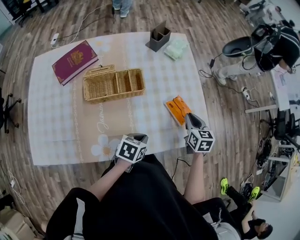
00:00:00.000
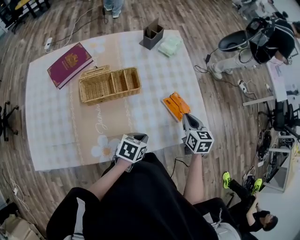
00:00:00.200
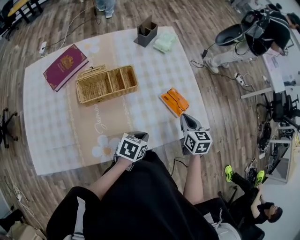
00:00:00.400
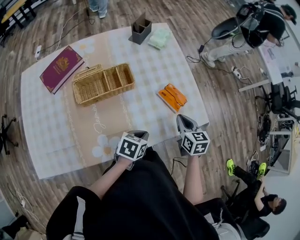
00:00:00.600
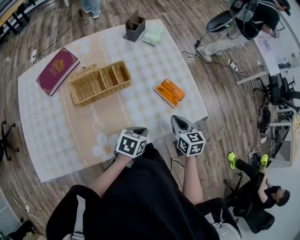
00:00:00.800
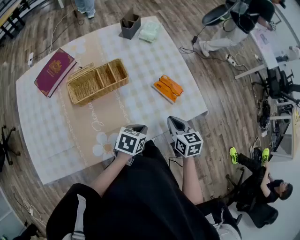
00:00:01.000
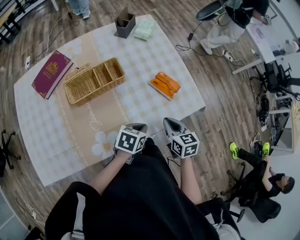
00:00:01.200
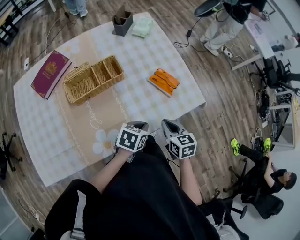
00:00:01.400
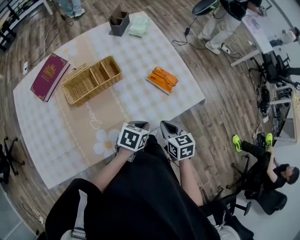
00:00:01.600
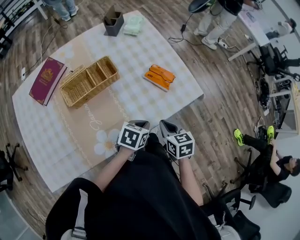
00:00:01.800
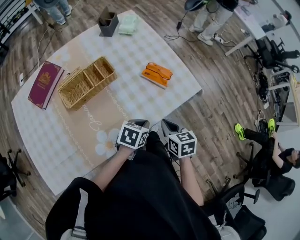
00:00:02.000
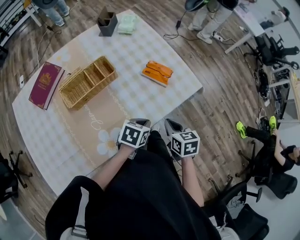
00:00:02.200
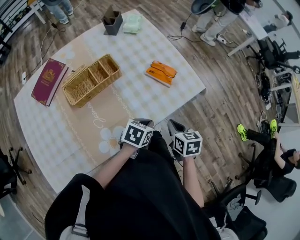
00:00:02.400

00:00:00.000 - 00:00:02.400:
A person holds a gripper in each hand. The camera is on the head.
00:00:00.000 - 00:00:01.200: The right gripper travels backward by about 15 cm.
00:00:01.200 - 00:00:02.400: The right gripper shifts approximately 5 cm backward.

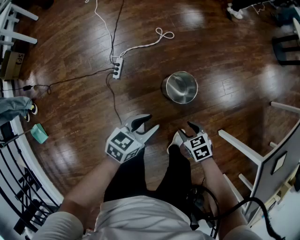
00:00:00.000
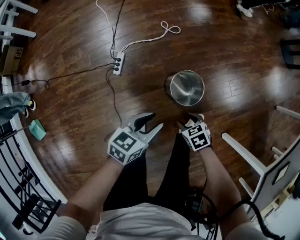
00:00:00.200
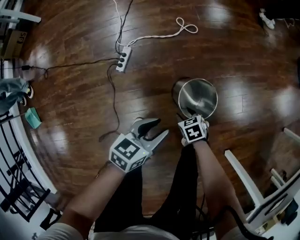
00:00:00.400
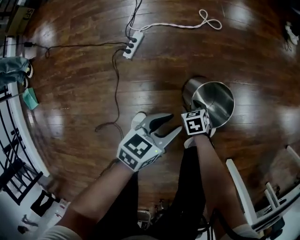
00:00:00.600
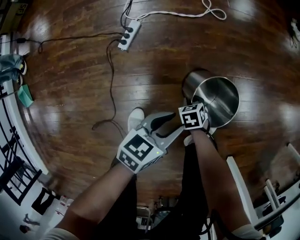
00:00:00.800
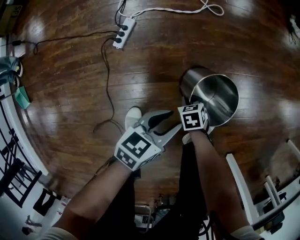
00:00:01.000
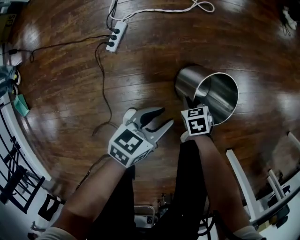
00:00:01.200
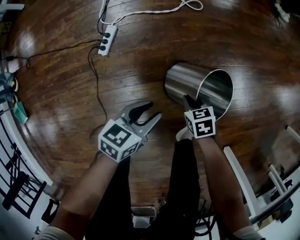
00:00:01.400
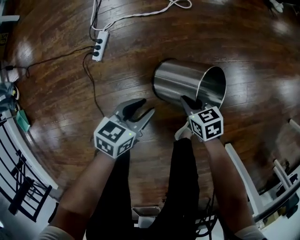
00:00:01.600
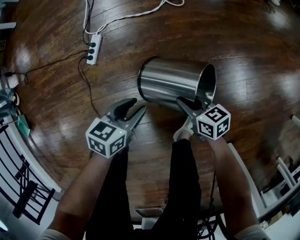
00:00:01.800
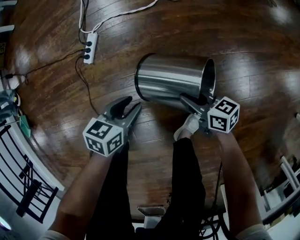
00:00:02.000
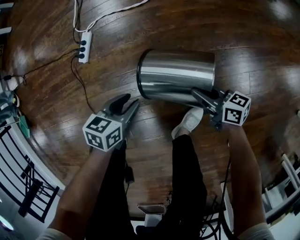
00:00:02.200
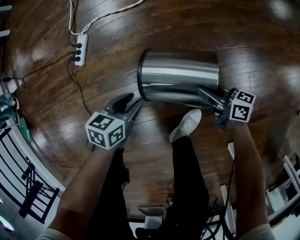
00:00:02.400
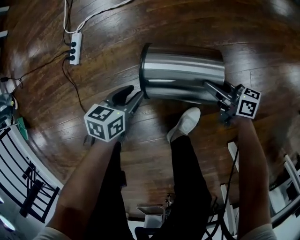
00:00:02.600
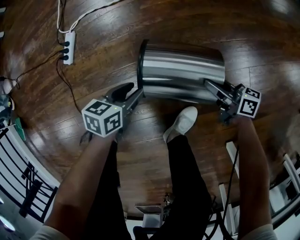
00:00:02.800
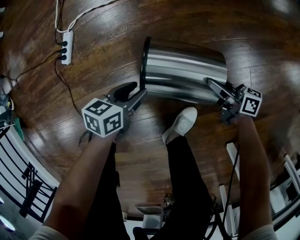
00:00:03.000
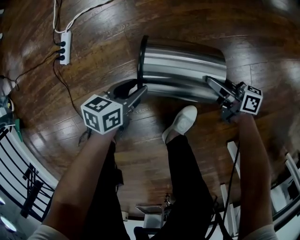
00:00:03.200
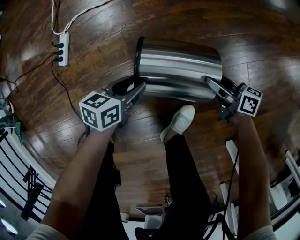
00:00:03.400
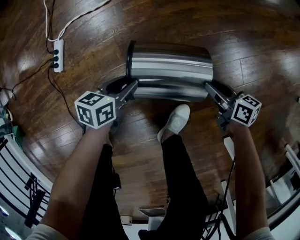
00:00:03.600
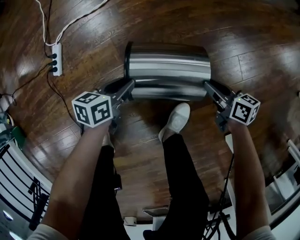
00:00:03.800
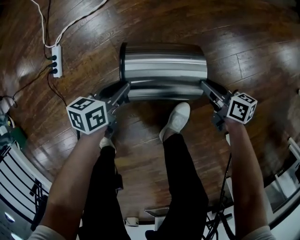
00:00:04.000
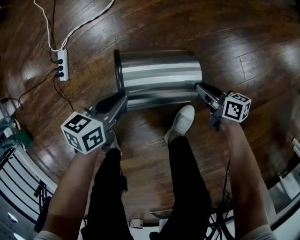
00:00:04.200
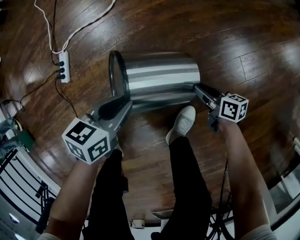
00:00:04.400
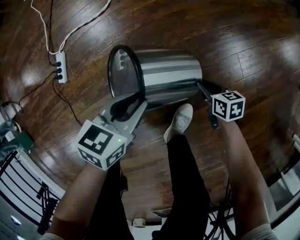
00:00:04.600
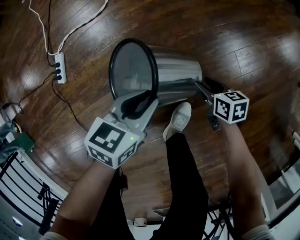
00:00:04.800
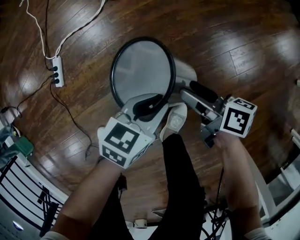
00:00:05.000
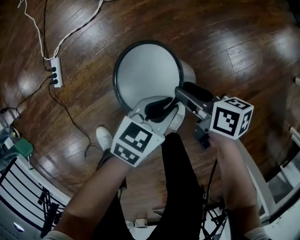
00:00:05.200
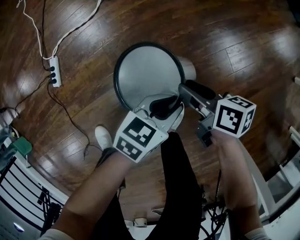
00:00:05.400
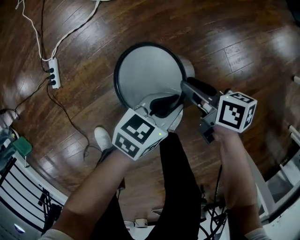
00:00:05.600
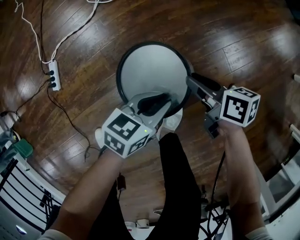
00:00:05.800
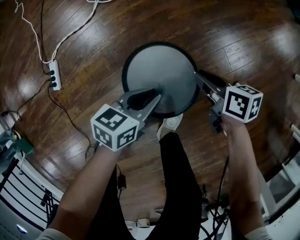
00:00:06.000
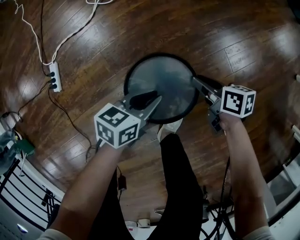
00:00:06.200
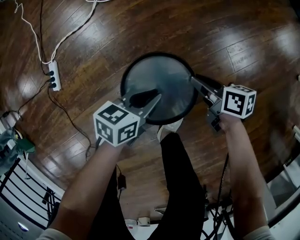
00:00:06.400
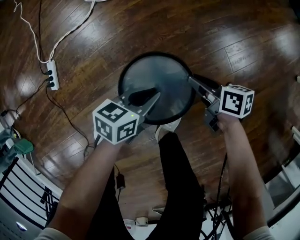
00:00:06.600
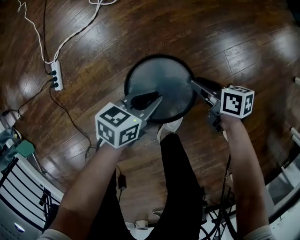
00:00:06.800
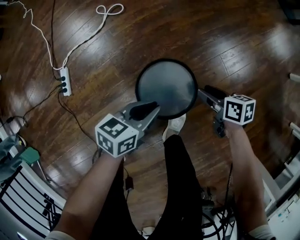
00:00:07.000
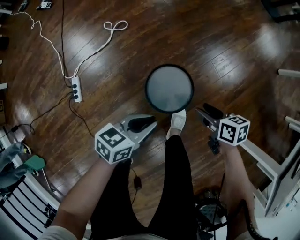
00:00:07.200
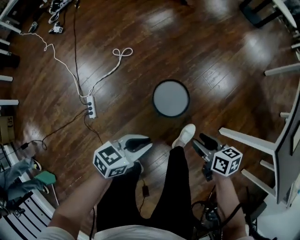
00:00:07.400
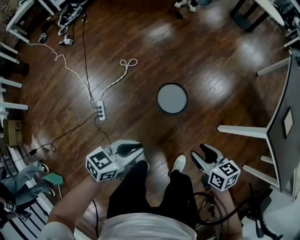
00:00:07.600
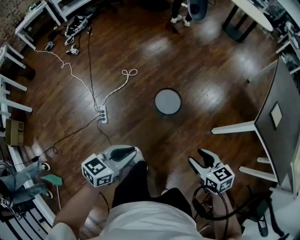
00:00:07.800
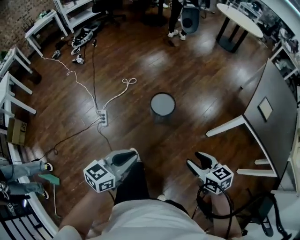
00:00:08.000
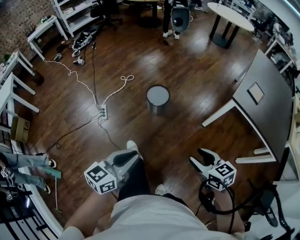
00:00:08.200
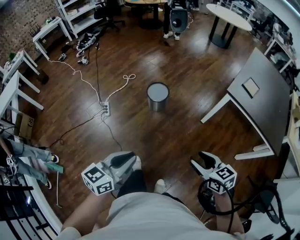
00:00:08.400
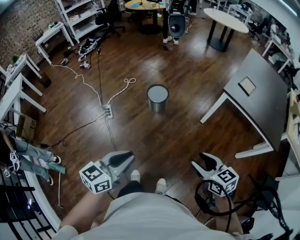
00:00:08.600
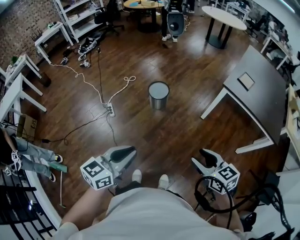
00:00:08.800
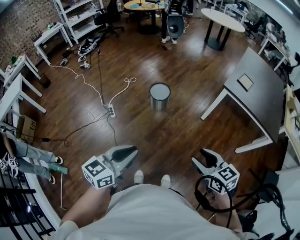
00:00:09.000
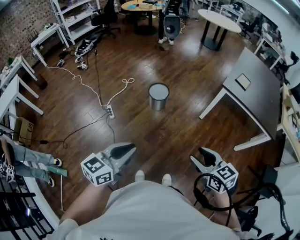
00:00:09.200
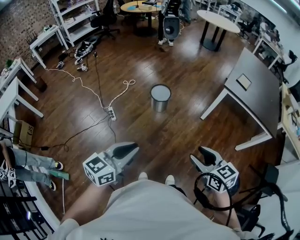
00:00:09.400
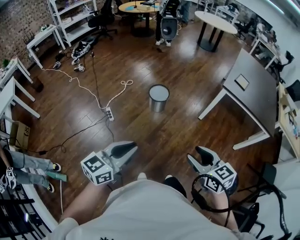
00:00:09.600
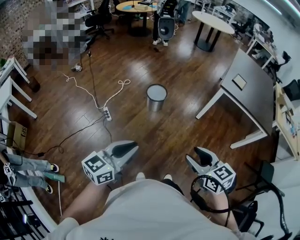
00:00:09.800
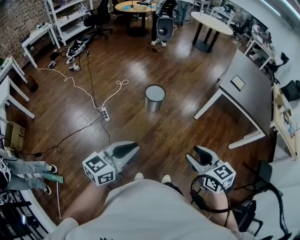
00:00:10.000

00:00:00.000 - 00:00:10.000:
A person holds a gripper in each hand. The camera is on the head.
00:00:00.000 - 00:00:01.400: Both grippers move downward, about 25 cm. The right gripper closes.
00:00:01.400 - 00:00:02.800: The left gripper moves downward and to the right, about 15 cm; the right gripper travels to the right by roughly 20 cm, and tilts its fingers some 50 degrees upward.
00:00:02.800 - 00:00:04.200: The left gripper moves upward, about 5 cm, and closes, while the right gripper moves approximately 5 cm, swivels some 20 degrees, and opens and closes again.
00:00:04.200 - 00:00:05.800: The right gripper moves upward, about 10 cm, and opens, then closes again, while the left gripper shifts by roughly 20 cm, and swivels approximately 20 degrees.
00:00:05.800 - 00:00:07.200: The left gripper is displaced upward by roughly 10 cm. The right gripper shifts by approximately 15 cm, and opens up.
00:00:07.200 - 00:00:08.600: The two grippers travel together, backward, some 60 cm. The two grippers go about 40 cm upward. The right gripper changes its angle by some 30 degrees, while the left gripper swivels some 30 degrees.
00:00:08.600 - 00:00:10.000: The right gripper is displaced to the left and upward by some 15 cm. The left gripper travels to the left by some 10 cm.

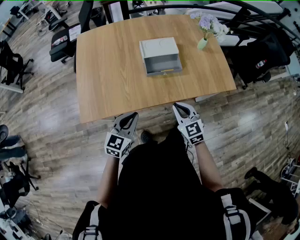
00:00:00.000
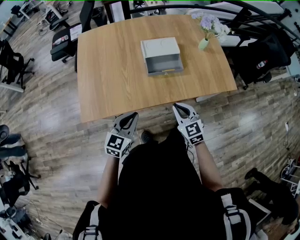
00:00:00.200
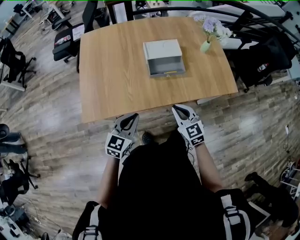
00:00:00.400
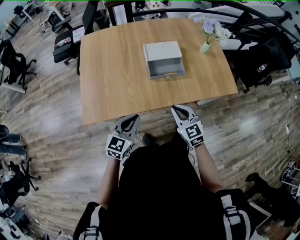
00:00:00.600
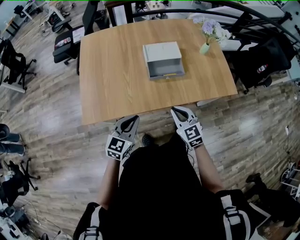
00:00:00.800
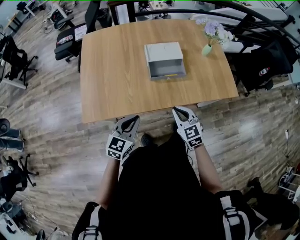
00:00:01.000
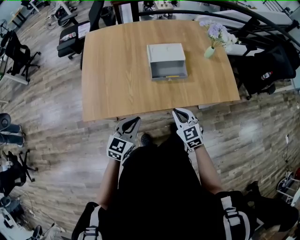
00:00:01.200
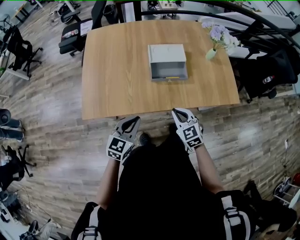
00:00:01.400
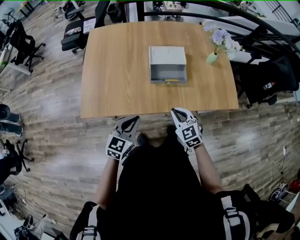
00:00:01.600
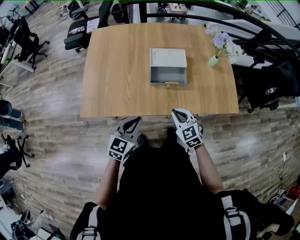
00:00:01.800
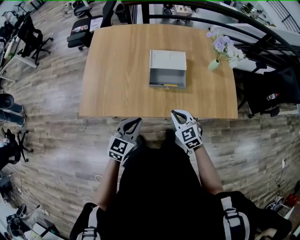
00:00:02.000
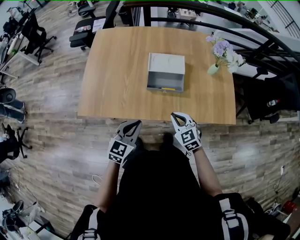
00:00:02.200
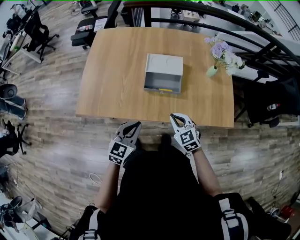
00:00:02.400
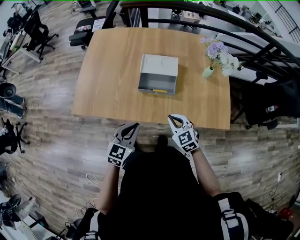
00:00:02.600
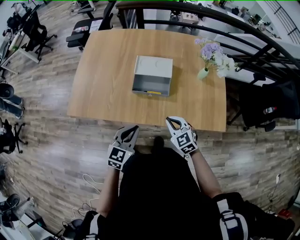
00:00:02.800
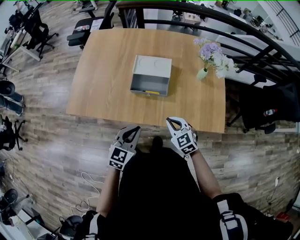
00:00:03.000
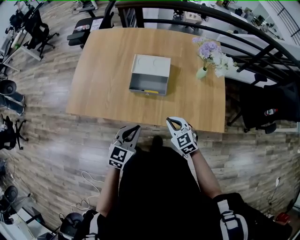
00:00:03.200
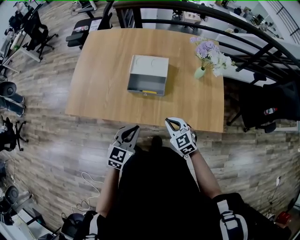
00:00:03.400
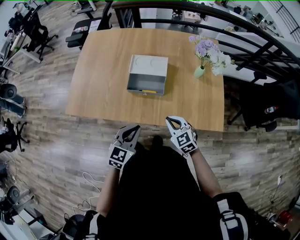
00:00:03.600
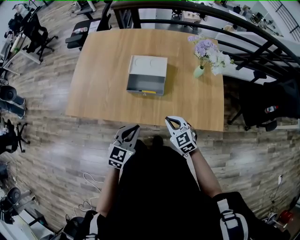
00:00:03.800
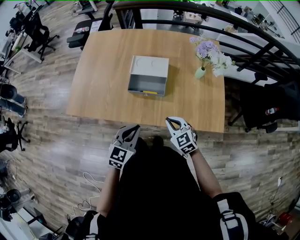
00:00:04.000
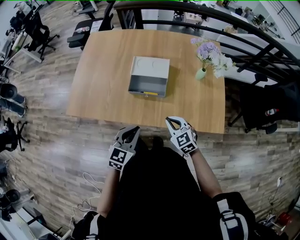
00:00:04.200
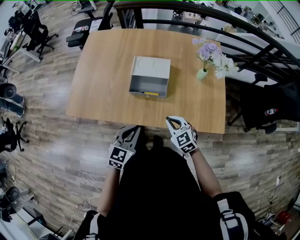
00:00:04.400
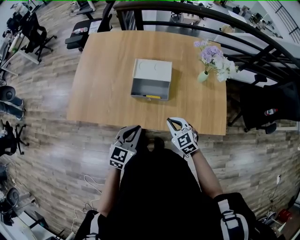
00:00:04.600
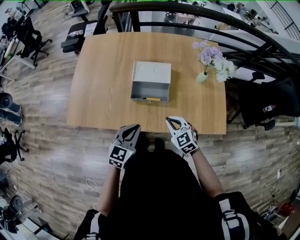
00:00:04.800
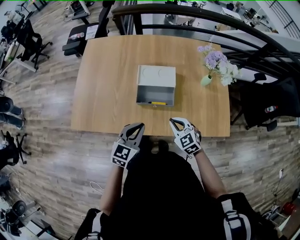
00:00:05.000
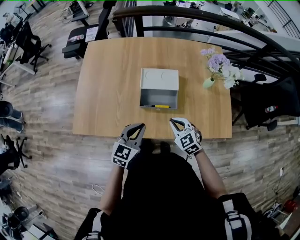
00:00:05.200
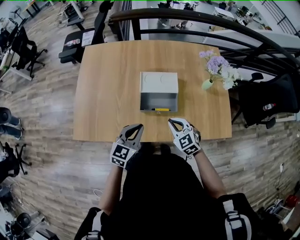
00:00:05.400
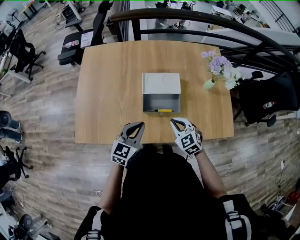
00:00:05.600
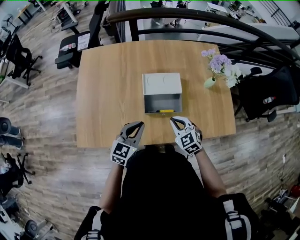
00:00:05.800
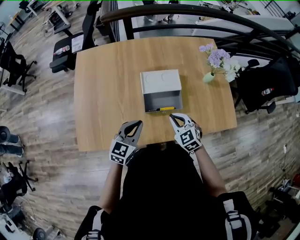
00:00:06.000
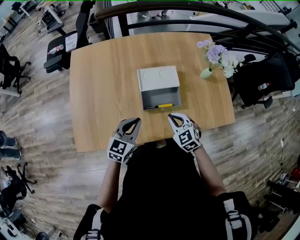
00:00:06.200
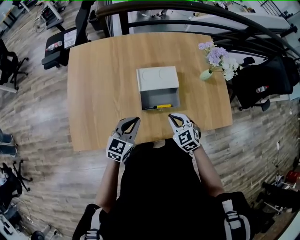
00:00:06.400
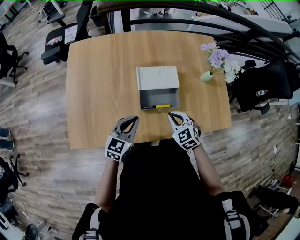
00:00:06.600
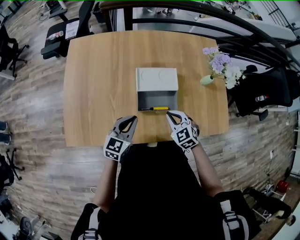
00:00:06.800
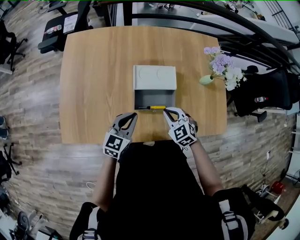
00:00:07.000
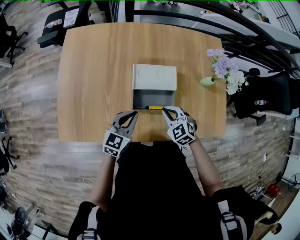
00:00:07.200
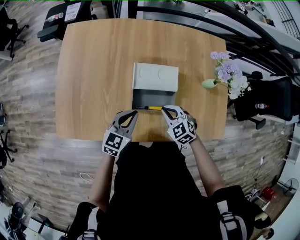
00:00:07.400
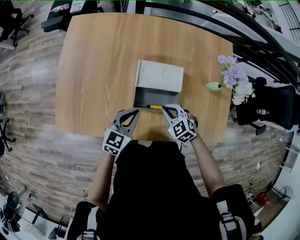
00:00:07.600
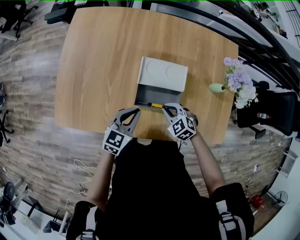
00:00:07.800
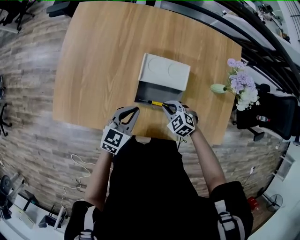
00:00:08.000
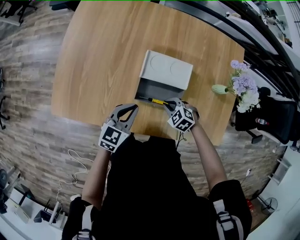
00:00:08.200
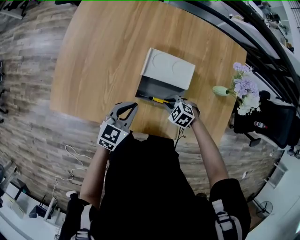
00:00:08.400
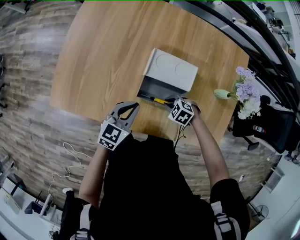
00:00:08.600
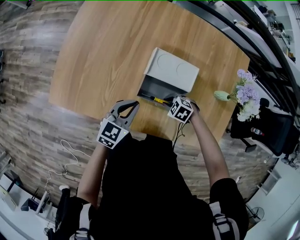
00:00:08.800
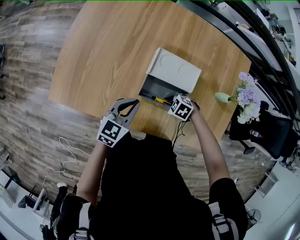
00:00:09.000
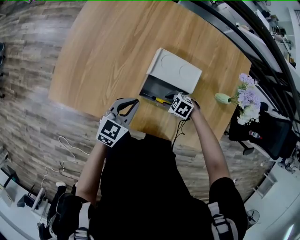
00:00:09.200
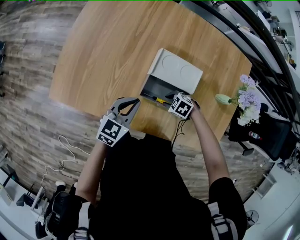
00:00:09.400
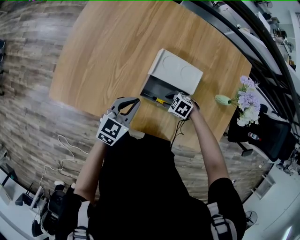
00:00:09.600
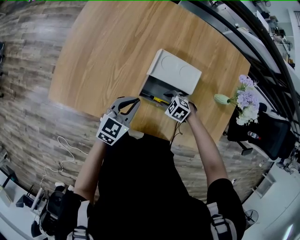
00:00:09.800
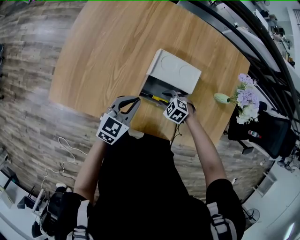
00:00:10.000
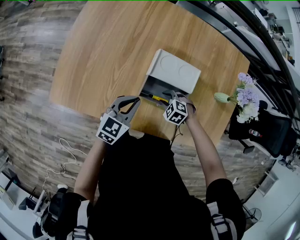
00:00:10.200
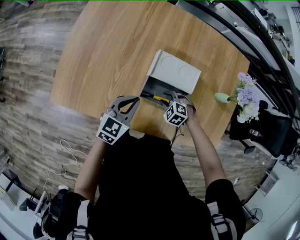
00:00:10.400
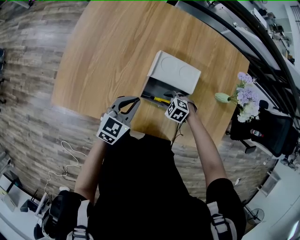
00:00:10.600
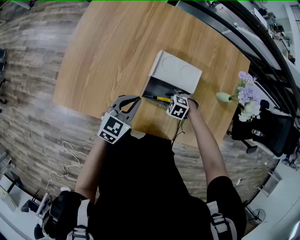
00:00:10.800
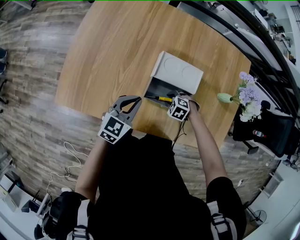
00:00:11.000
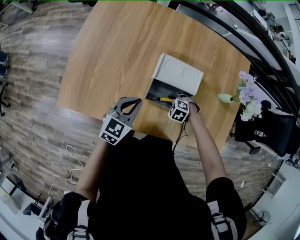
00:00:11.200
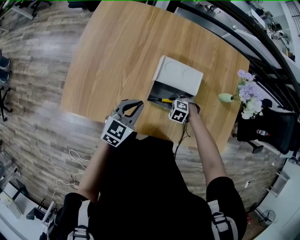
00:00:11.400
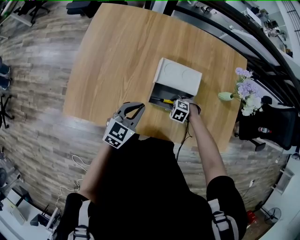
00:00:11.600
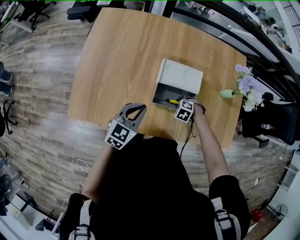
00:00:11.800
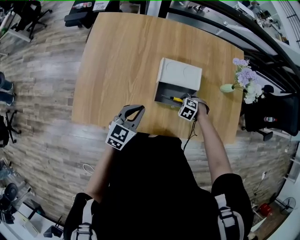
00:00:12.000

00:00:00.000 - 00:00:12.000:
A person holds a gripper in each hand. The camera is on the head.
00:00:00.000 - 00:00:01.600: There are only small adjustments of the grippers.
00:00:01.600 - 00:00:03.000: Both grippers travel together to the right, approximately 15 cm.
00:00:03.000 - 00:00:04.400: There are only small adjustments of the grippers.
00:00:04.400 - 00:00:06.000: The right gripper is displaced to the left and forward by some 15 cm; the left gripper is displaced forward and to the left by roughly 20 cm.
00:00:06.000 - 00:00:07.600: Both grippers move forward and downward, approximately 10 cm. The right gripper changes its angle by roughly 30 degrees.
00:00:07.600 - 00:00:09.000: The right gripper heads downward, covering about 10 cm, and rotates some 40 degrees.
00:00:09.000 - 00:00:10.400: The right gripper swivels about 20 degrees, and opens up.
00:00:10.400 - 00:00:12.000: The left gripper changes place by about 10 cm.
